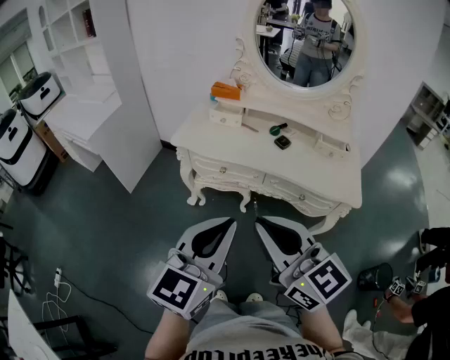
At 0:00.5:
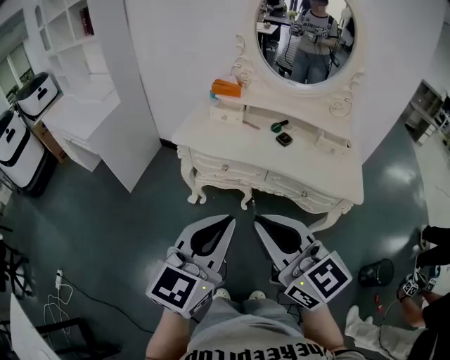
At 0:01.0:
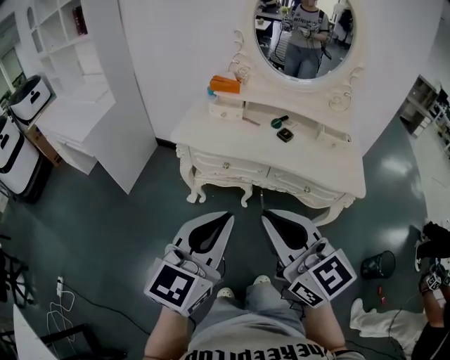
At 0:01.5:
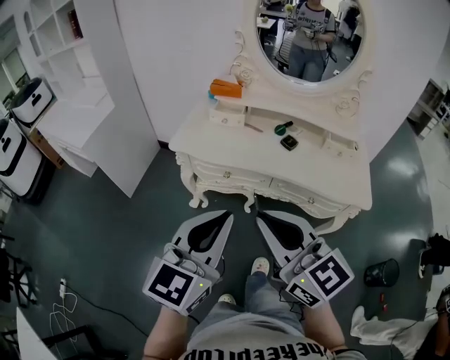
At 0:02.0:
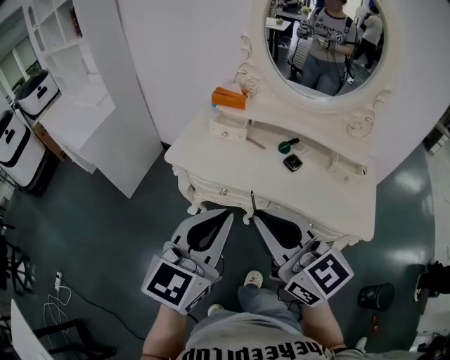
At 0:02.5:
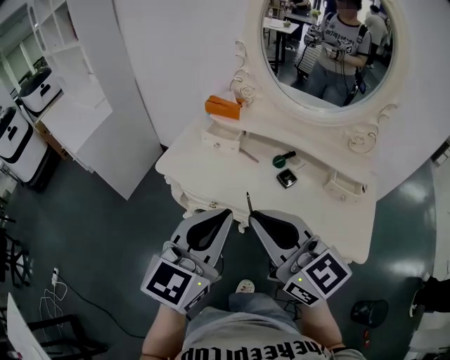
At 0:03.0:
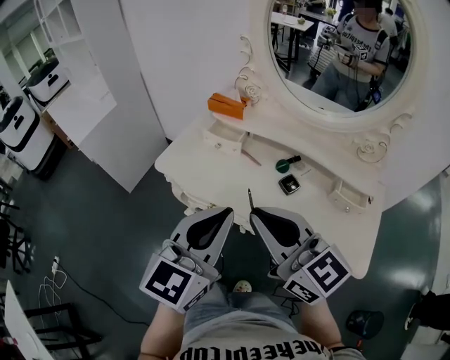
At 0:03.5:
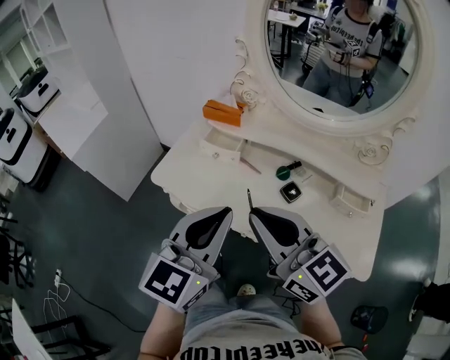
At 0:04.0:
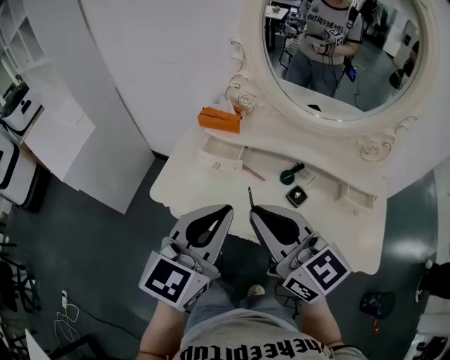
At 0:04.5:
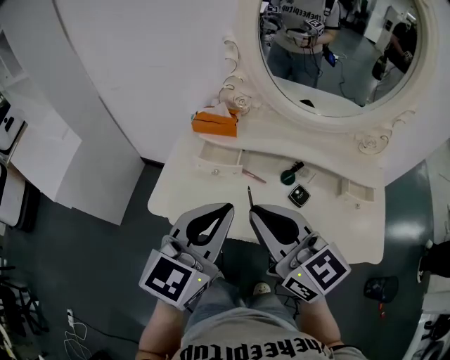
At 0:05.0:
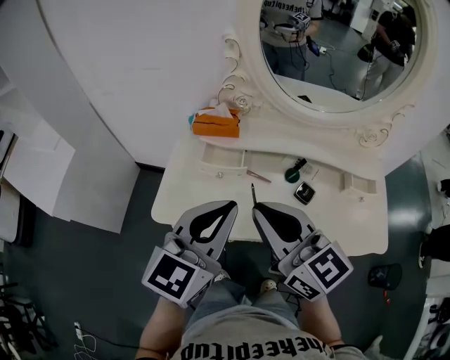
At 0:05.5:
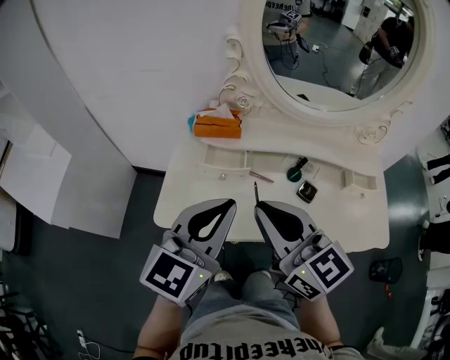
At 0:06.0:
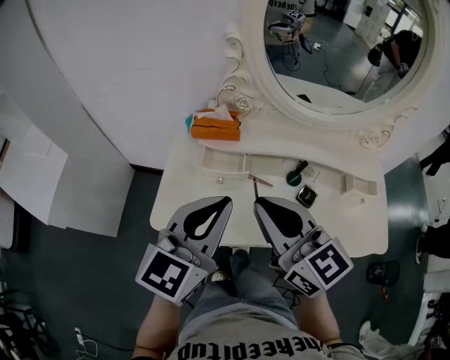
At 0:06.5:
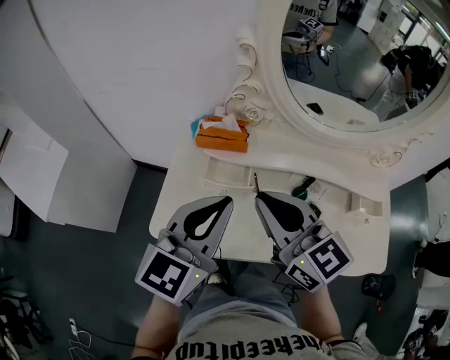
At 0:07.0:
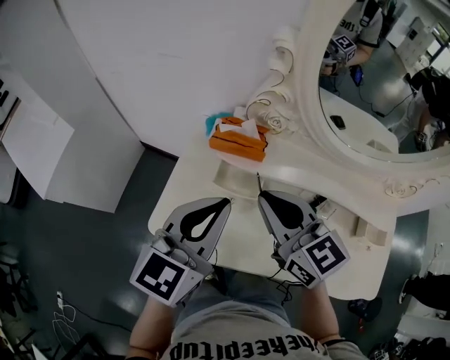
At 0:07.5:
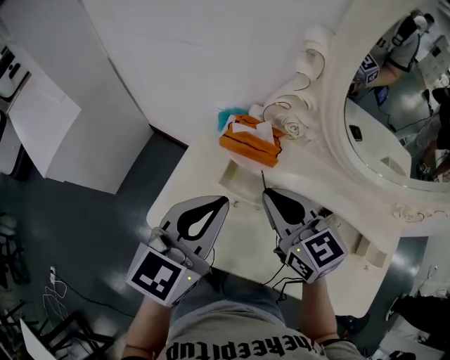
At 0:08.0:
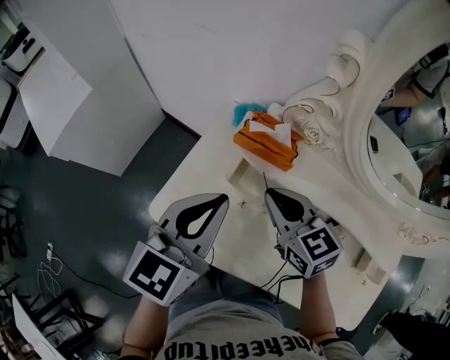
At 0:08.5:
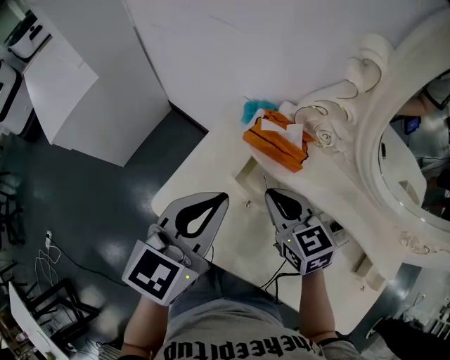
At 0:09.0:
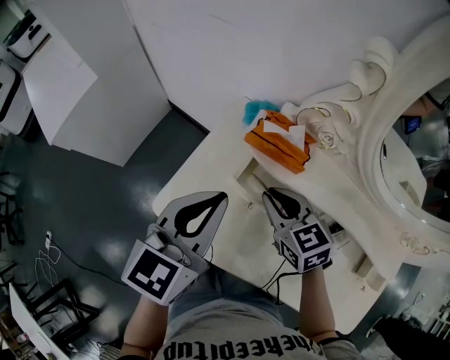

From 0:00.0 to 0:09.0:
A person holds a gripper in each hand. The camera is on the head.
From 0:00.0 to 0:02.0: The grippers both shift forward by approximately 15 cm.
From 0:02.0 to 0:04.5: Both grippers move forward, roughly 25 cm.
From 0:04.5 to 0:07.0: The right gripper heads forward, covering approximately 20 cm. The left gripper heads forward and to the left, covering about 15 cm.
From 0:07.0 to 0:09.0: The right gripper goes about 15 cm downward, and turns by some 20 degrees, while the left gripper changes place by some 10 cm.

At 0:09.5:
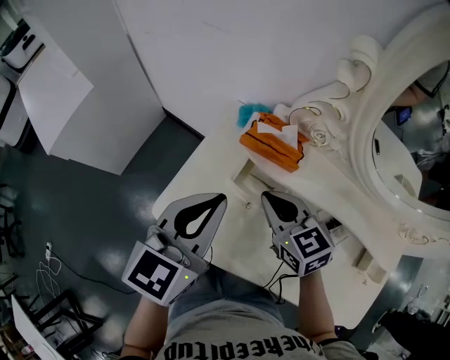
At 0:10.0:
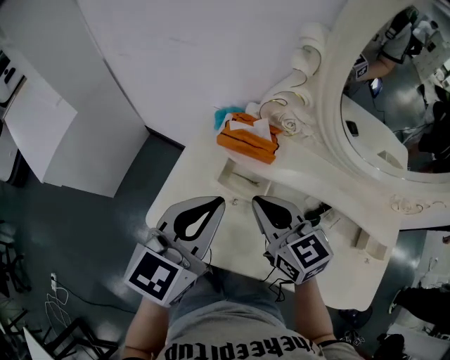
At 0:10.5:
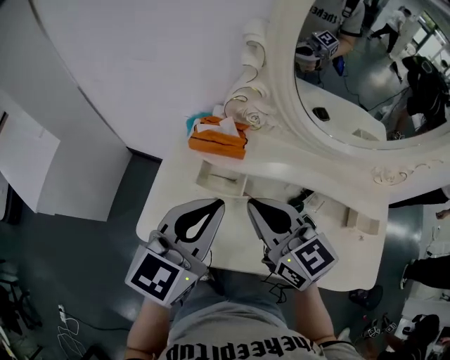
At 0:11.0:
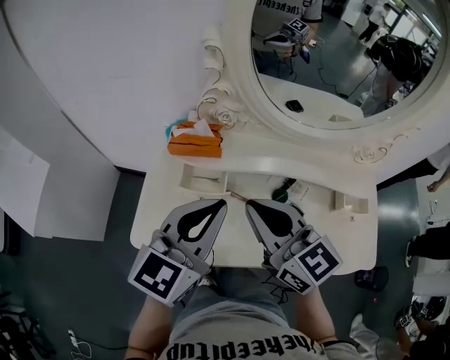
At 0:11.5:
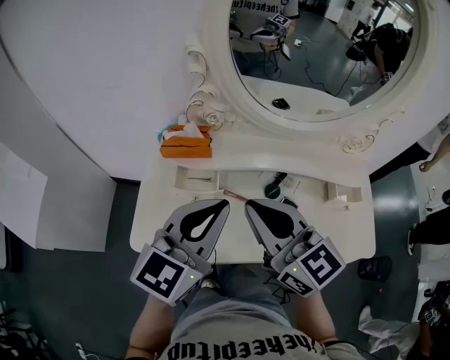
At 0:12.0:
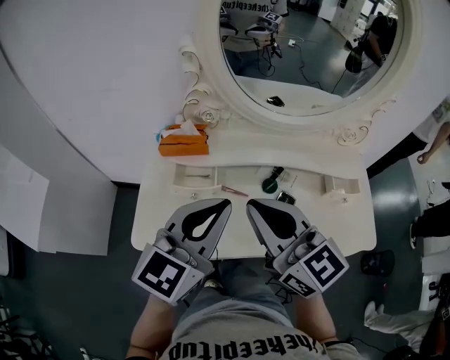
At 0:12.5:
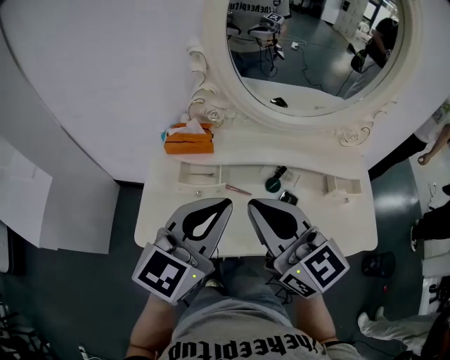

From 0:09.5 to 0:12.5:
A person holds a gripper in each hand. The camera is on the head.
From 0:09.5 to 0:11.0: The right gripper is displaced upward, backward and to the right by roughly 20 cm, and swivels roughly 30 degrees. Meanwhile the left gripper travels to the right, backward and upward by roughly 15 cm, and turns by roughly 30 degrees.
From 0:11.0 to 0:12.5: Both grippers move backward, some 5 cm.

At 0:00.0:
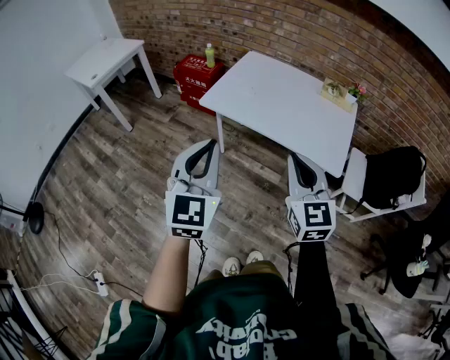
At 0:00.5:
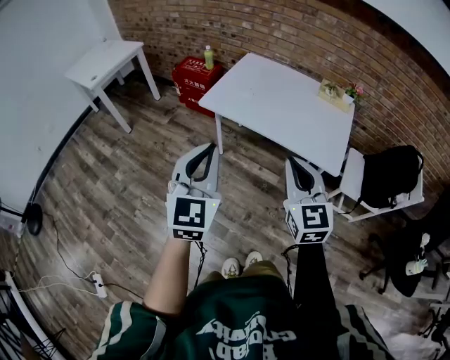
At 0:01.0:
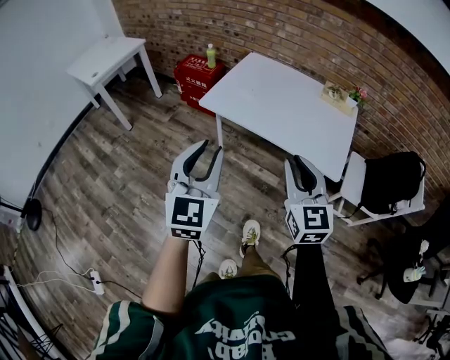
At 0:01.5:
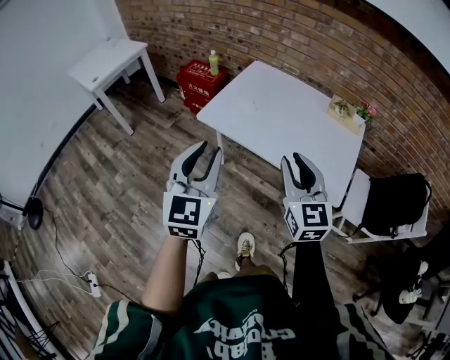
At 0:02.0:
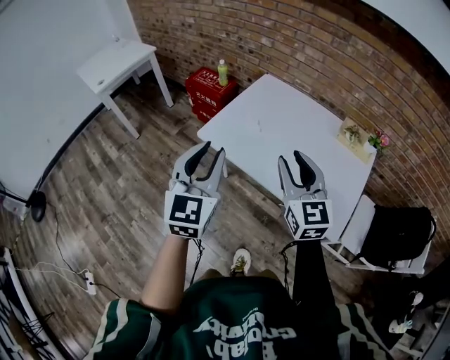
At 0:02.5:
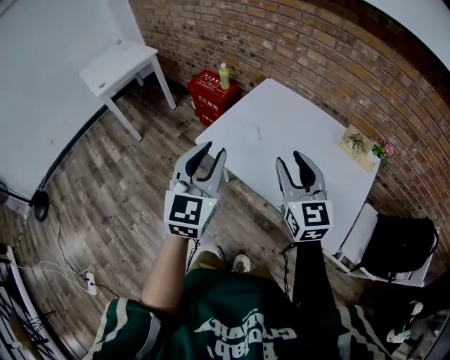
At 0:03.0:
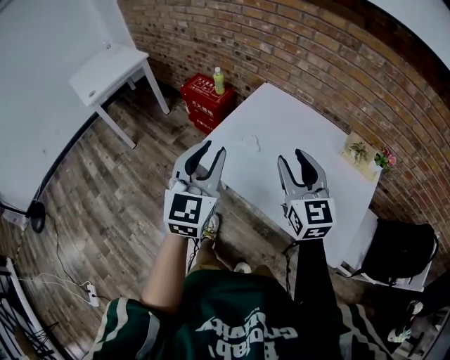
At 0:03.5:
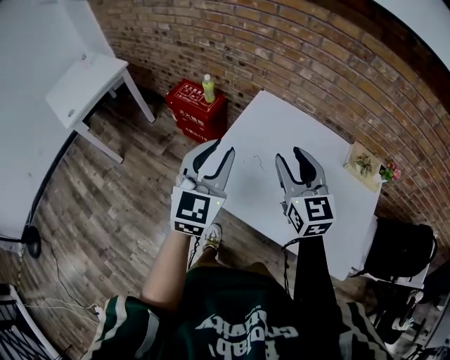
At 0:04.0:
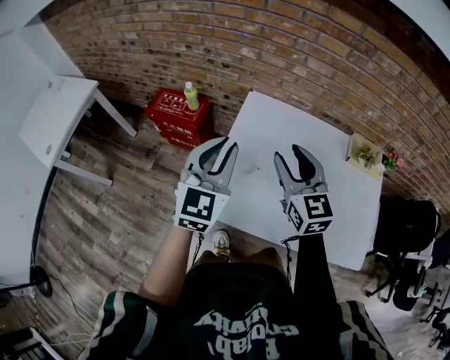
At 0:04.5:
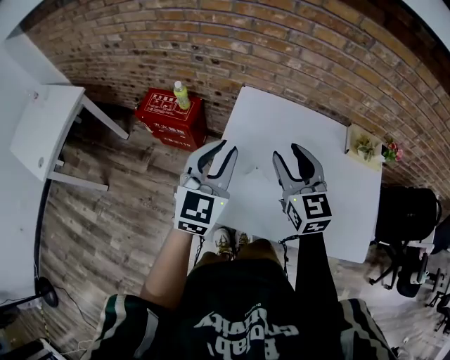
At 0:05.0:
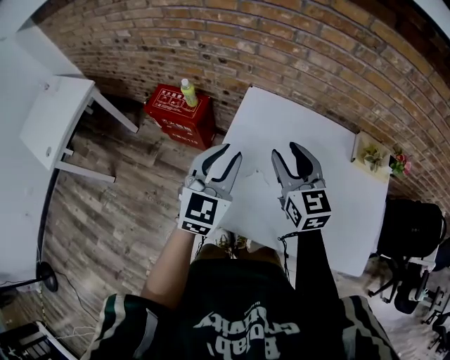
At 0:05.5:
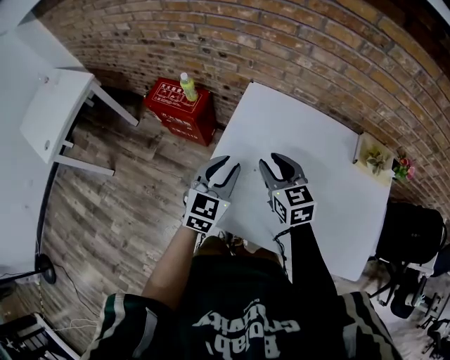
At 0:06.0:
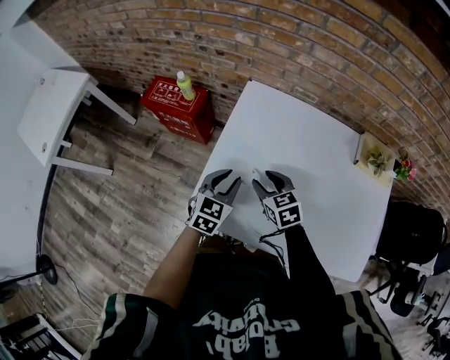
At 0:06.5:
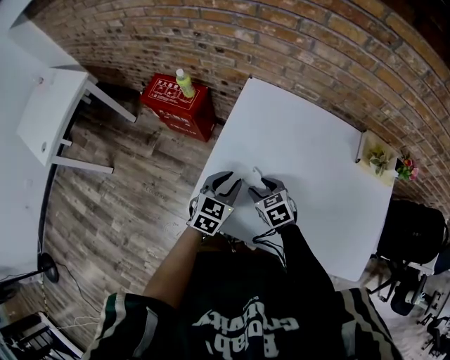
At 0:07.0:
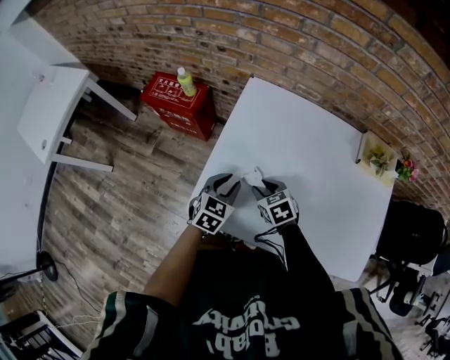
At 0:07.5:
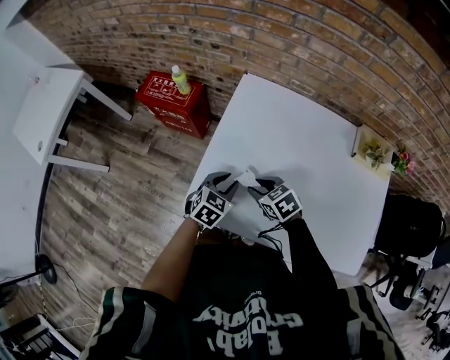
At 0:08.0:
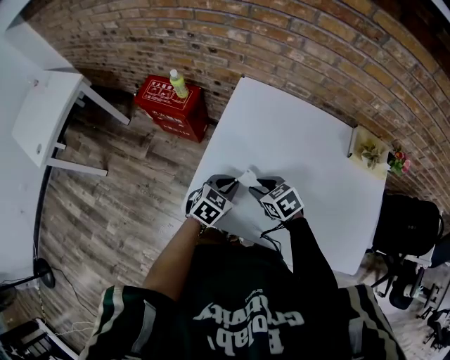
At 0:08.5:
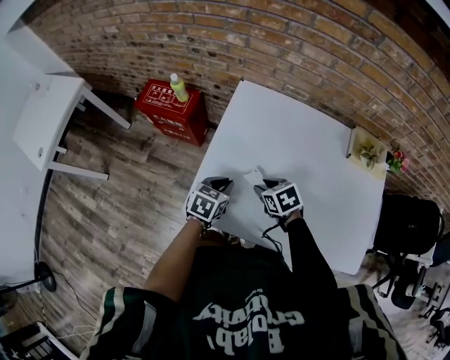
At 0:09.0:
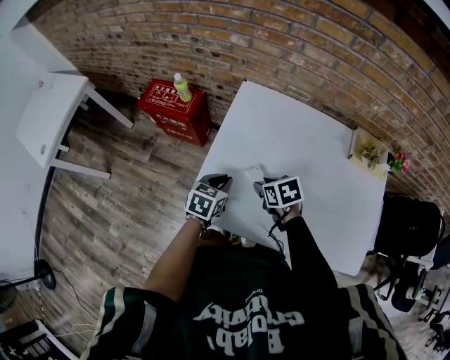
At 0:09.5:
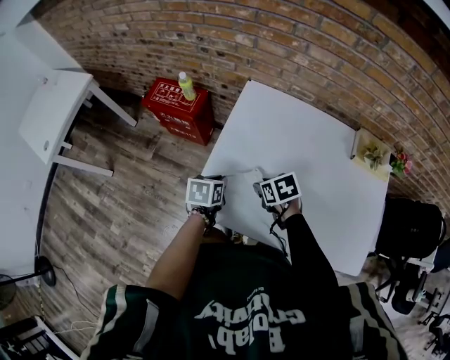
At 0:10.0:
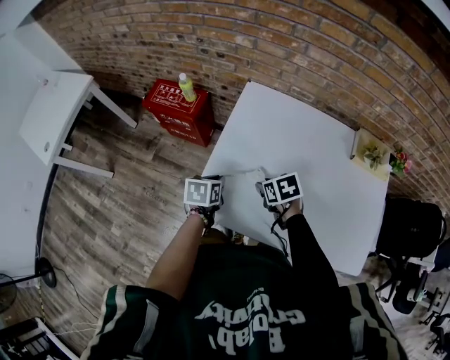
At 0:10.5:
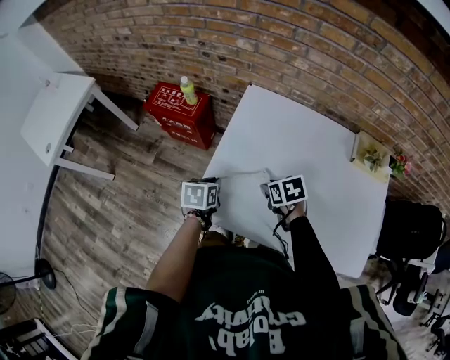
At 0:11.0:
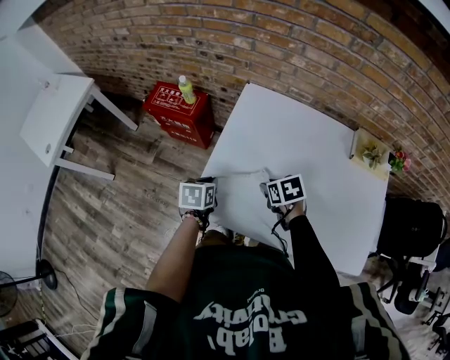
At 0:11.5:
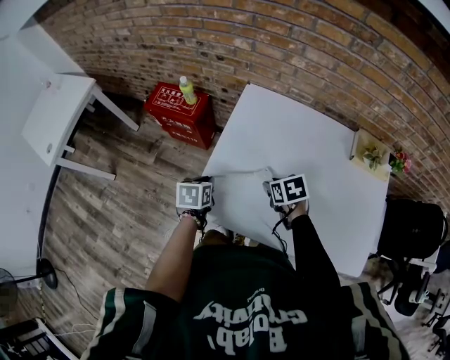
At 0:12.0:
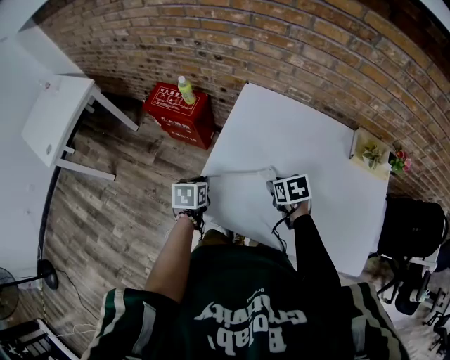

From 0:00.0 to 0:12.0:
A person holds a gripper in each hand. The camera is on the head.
From 0:00.0 to 0:02.0: The two grippers go roughly 25 cm forward. The right gripper opens up, while the left gripper opens up.
From 0:02.0 to 0:04.0: The grippers both shift forward by about 35 cm. The left gripper turns by some 20 degrees.
From 0:04.0 to 0:06.0: Both grippers move downward, about 25 cm. The left gripper swivels approximately 30 degrees. Meanwhile the right gripper rotates roughly 30 degrees.
From 0:06.0 to 0:08.0: The left gripper moves downward, approximately 5 cm, while the right gripper shifts by roughly 5 cm.
From 0:08.0 to 0:10.0: The left gripper shifts approximately 10 cm to the left, and rotates about 40 degrees. Meanwhile the right gripper swivels some 20 degrees.
From 0:10.0 to 0:12.0: The grippers stay close to where they were, moving slightly.

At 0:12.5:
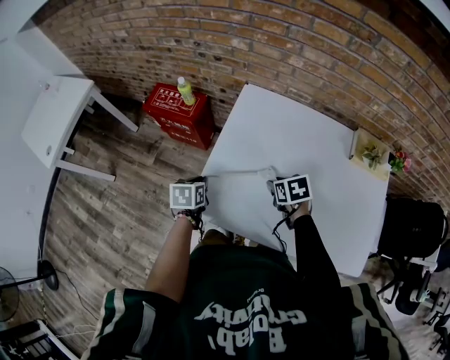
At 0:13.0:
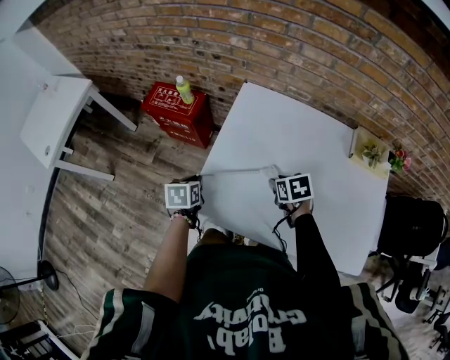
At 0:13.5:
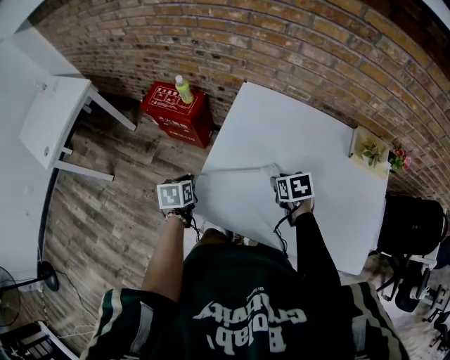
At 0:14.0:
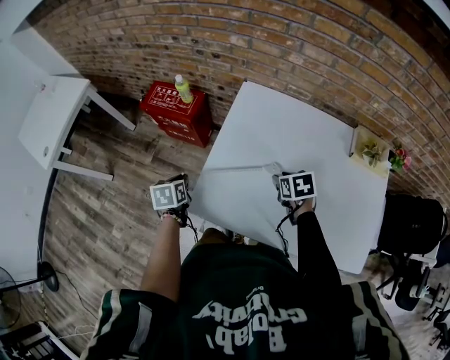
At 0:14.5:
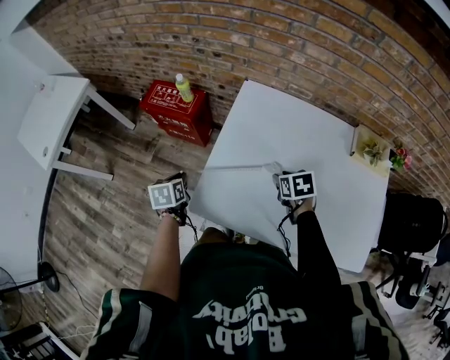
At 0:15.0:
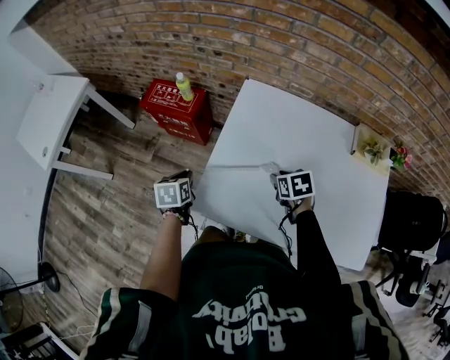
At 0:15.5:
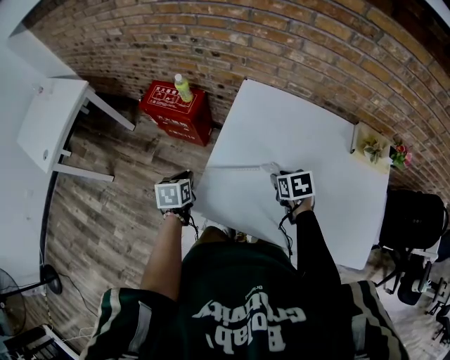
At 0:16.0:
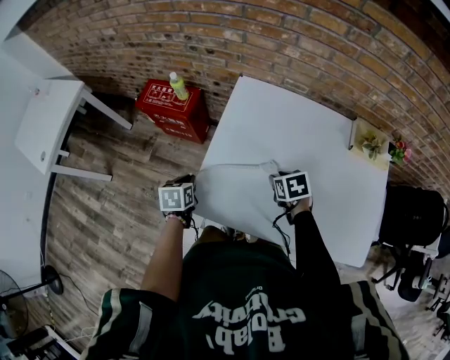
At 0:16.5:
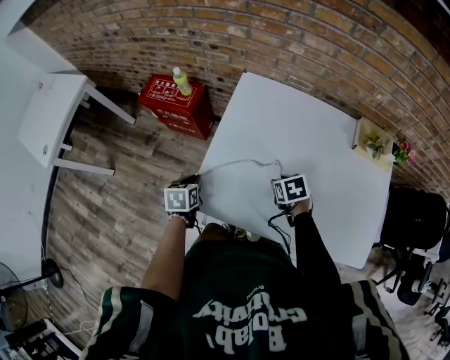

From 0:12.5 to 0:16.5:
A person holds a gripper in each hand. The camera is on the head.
From 0:12.5 to 0:14.5: The left gripper moves to the left, roughly 10 cm.
From 0:14.5 to 0:16.5: The right gripper ends up some 5 cm from where it was, while the left gripper heads to the right, covering approximately 5 cm.
